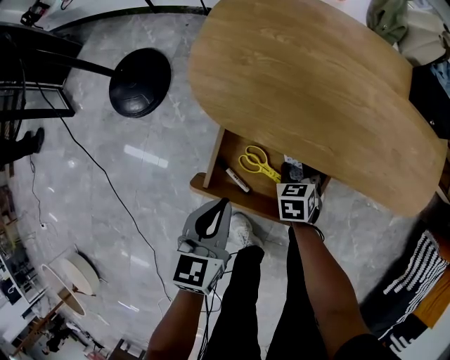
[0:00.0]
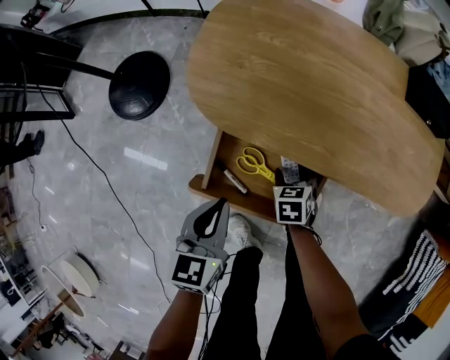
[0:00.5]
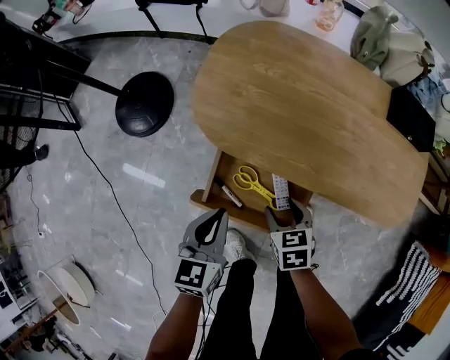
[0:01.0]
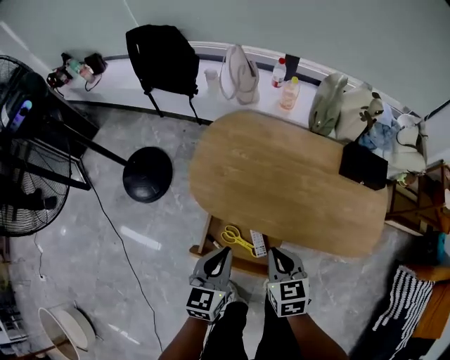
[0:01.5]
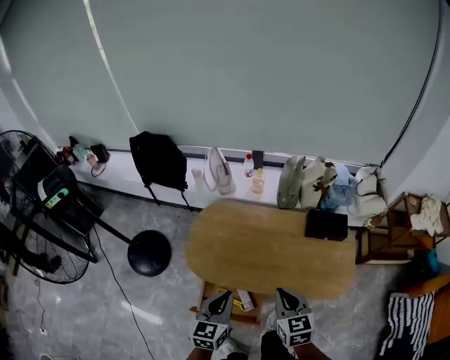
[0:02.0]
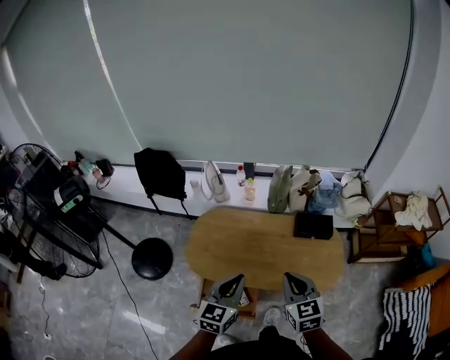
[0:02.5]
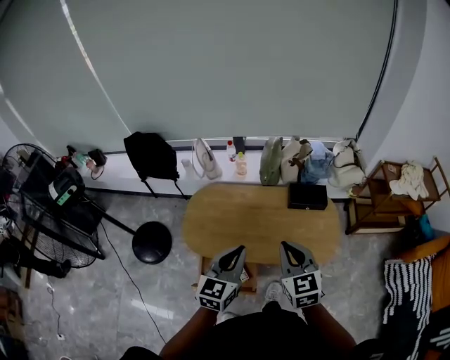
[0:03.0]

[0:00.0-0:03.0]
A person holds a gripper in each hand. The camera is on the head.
0:00.0 to 0:01.5: The left gripper shifts approximately 20 cm upward, while the right gripper goes about 35 cm upward, swivels some 20 degrees, and closes its fingers.
0:01.5 to 0:03.0: Both grippers travel together upward and to the right, approximately 35 cm. The right gripper turns by some 30 degrees, while the left gripper swivels about 20 degrees.

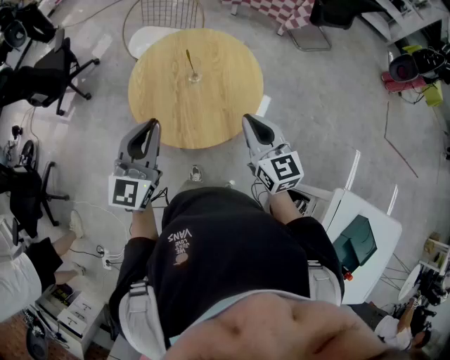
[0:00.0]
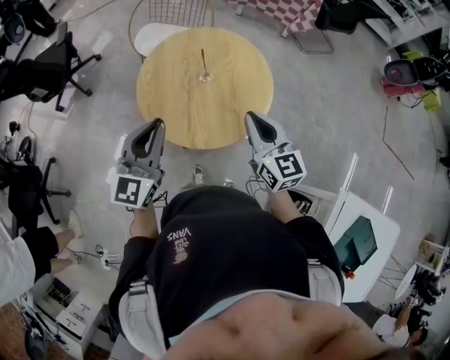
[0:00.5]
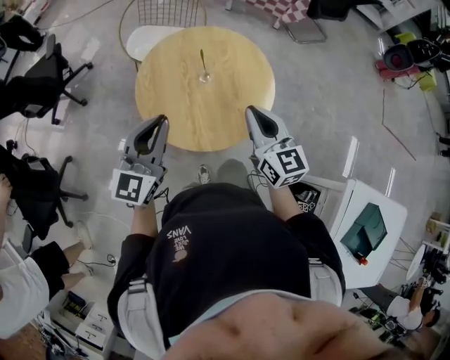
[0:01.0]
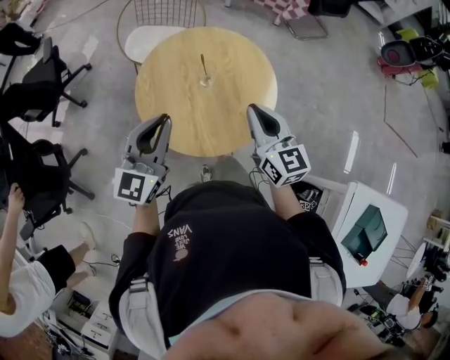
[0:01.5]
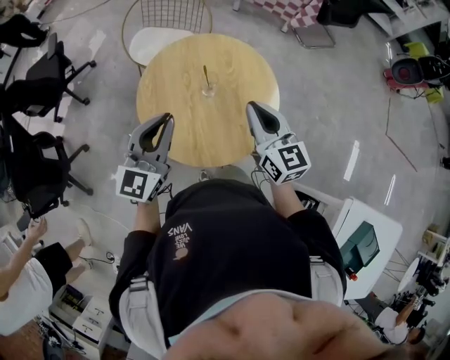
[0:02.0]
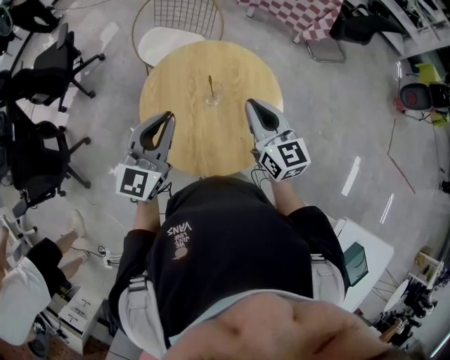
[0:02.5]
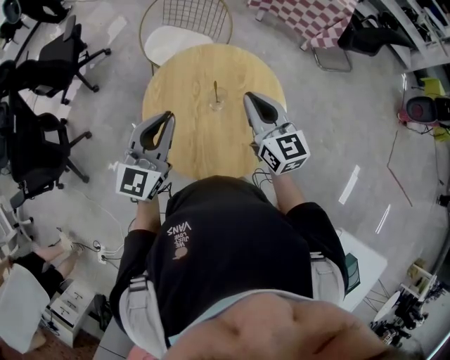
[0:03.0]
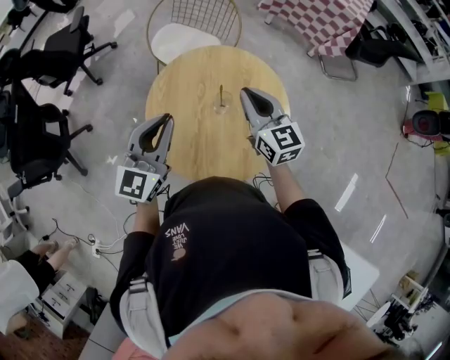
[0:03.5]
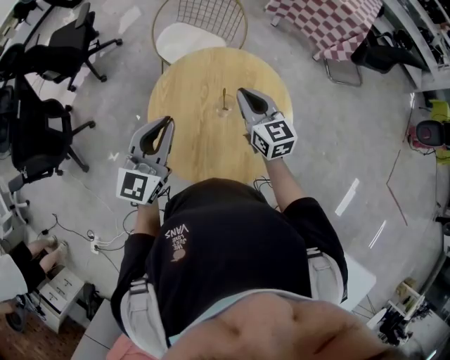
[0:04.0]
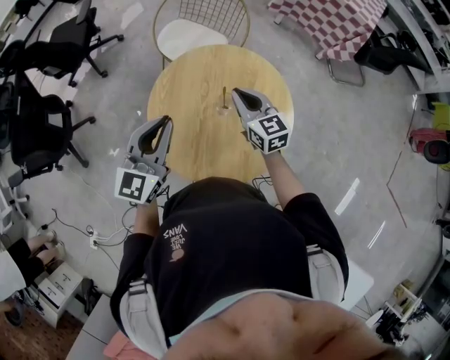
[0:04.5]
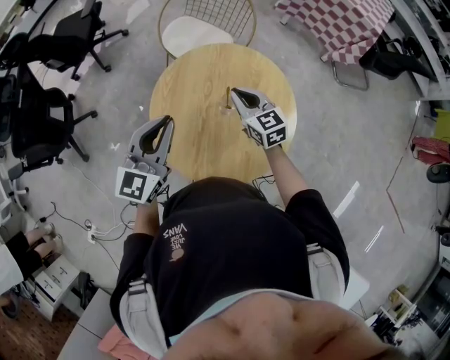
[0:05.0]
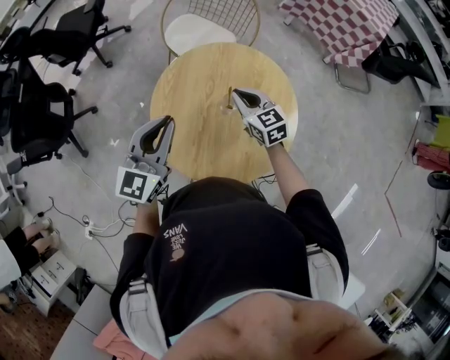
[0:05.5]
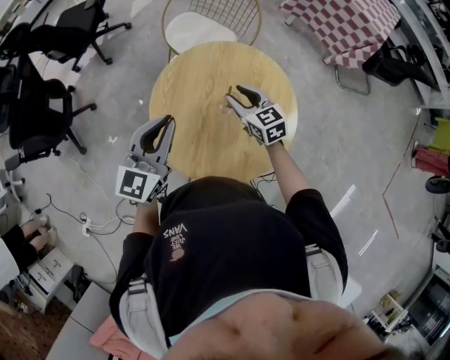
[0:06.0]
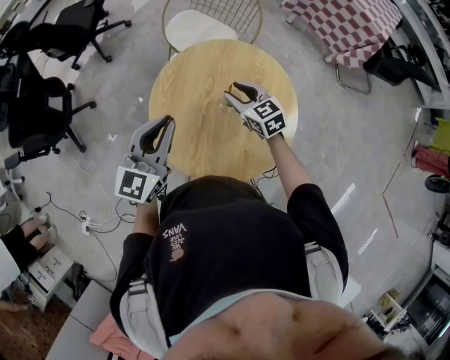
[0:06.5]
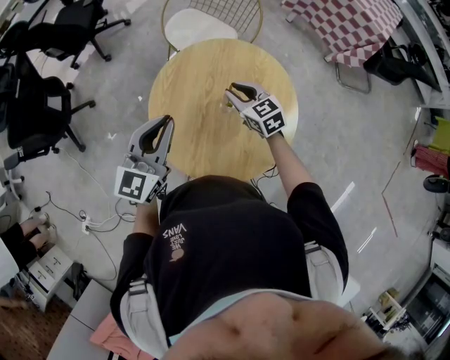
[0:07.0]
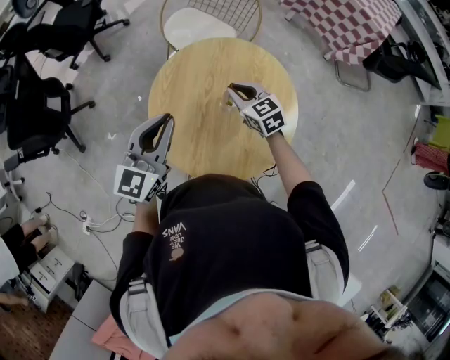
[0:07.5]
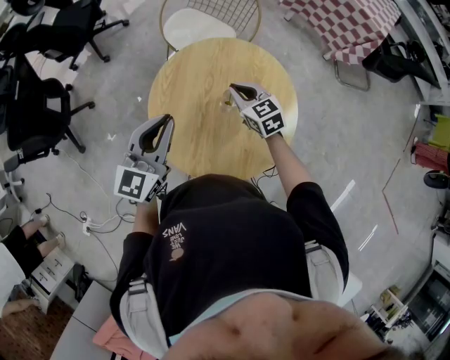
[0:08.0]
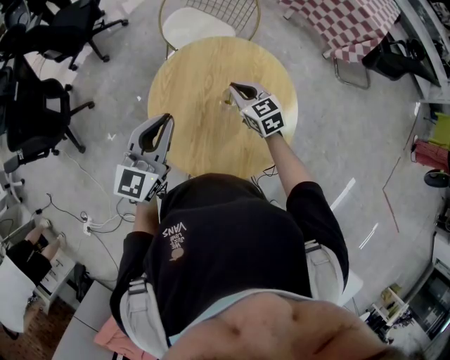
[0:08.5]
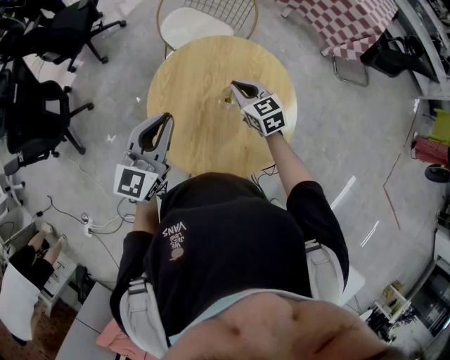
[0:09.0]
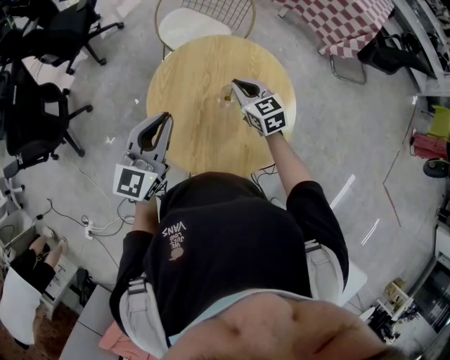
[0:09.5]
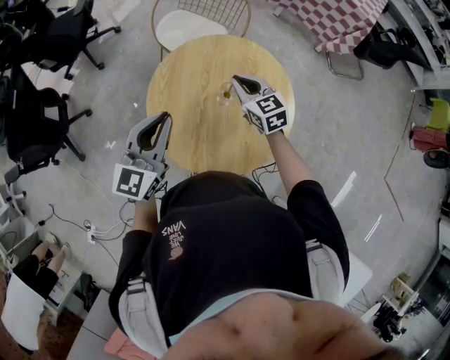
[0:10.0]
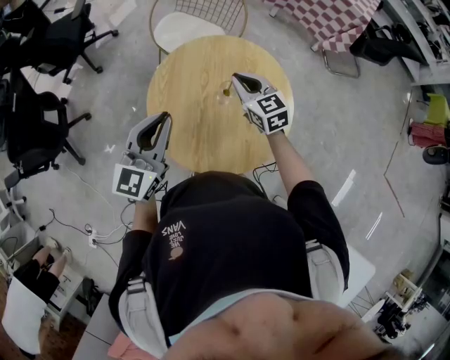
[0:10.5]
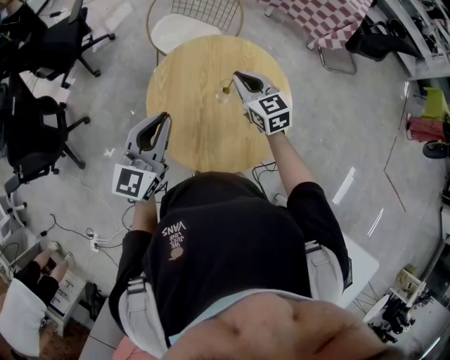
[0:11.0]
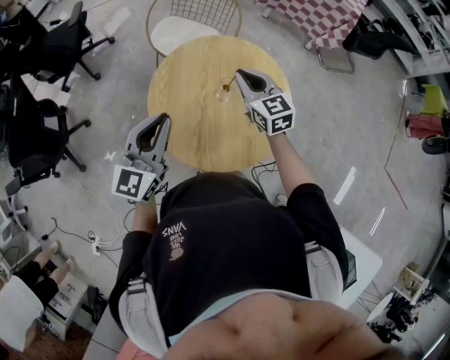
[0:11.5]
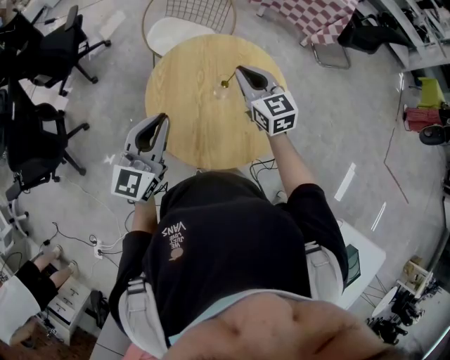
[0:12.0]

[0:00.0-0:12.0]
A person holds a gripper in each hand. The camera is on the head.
0:00.0 to 0:02.0: The two grippers go approximately 15 cm forward and to the left.
0:02.0 to 0:04.0: The left gripper heads forward, covering roughly 5 cm; the right gripper heads forward, covering some 15 cm.
0:04.0 to 0:06.0: The right gripper is displaced downward by roughly 10 cm, rotates roughly 20 degrees, and opens its fingers.
0:06.0 to 0:08.0: The right gripper closes.
0:08.0 to 0:10.0: The grippers make only small movements.
0:10.0 to 0:12.0: The right gripper goes about 10 cm upward and backward, while the left gripper moves approximately 5 cm.

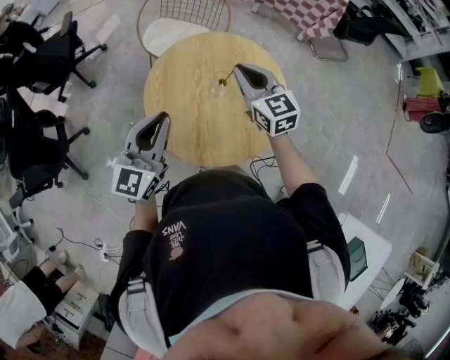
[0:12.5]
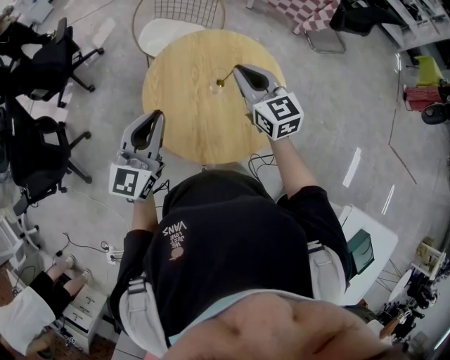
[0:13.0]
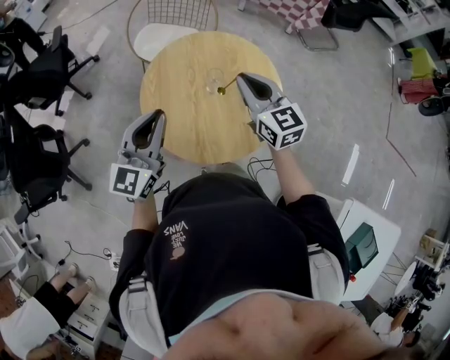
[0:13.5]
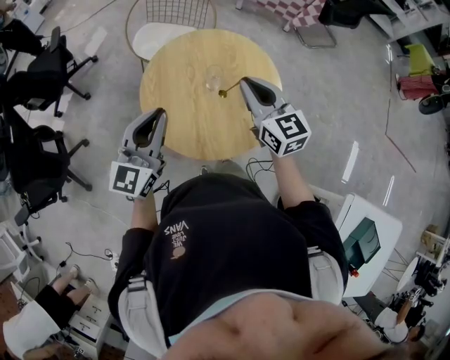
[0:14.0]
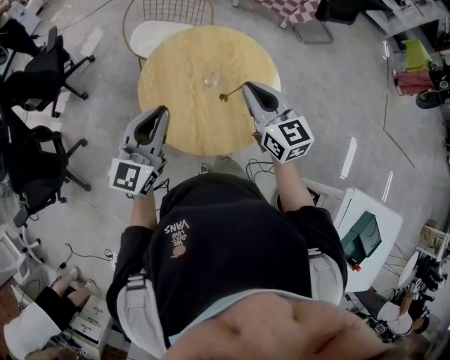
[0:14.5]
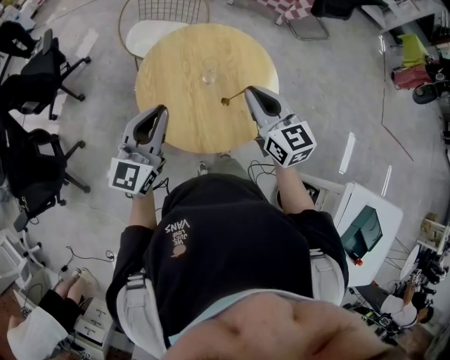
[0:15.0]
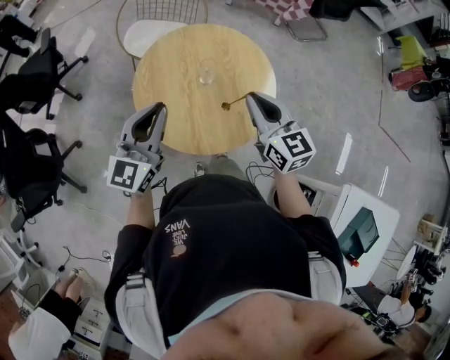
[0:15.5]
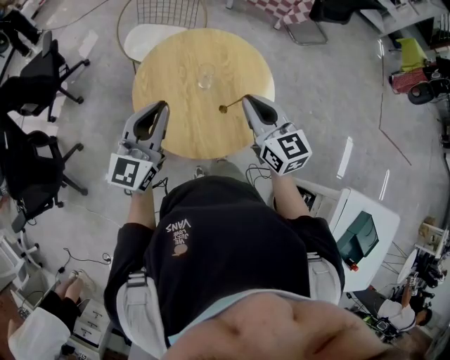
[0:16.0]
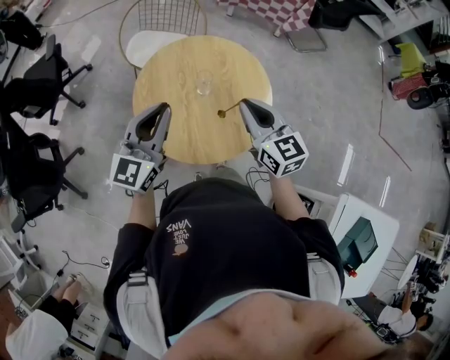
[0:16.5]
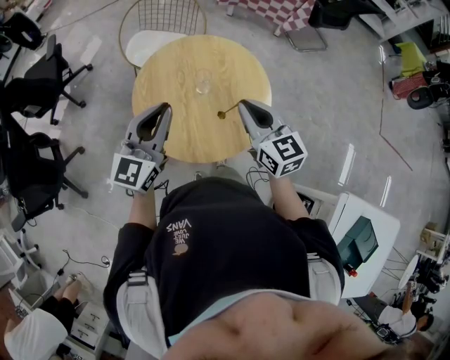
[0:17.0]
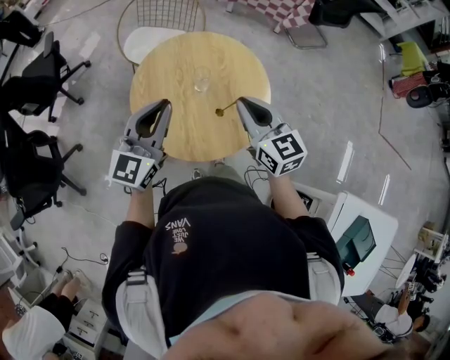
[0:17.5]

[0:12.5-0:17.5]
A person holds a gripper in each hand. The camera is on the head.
0:12.5 to 0:15.0: The right gripper travels backward by about 15 cm.
0:15.0 to 0:17.5: The left gripper ends up about 5 cm from where it was.

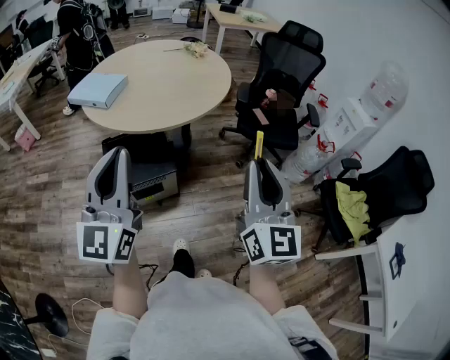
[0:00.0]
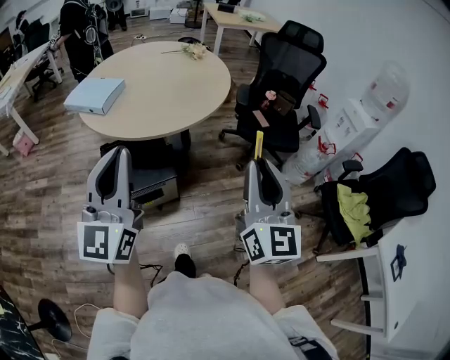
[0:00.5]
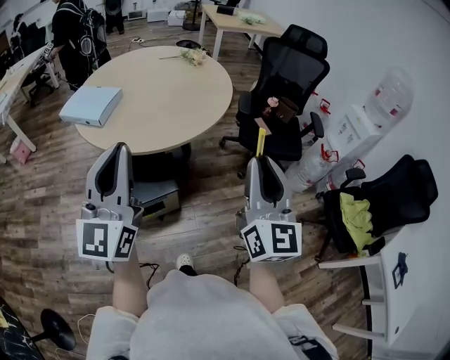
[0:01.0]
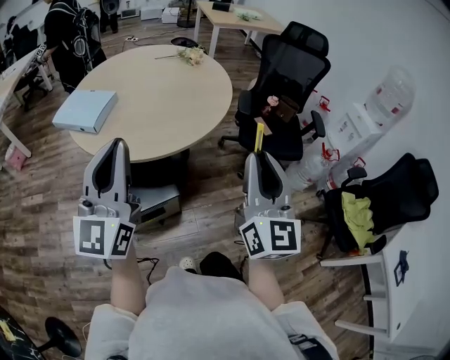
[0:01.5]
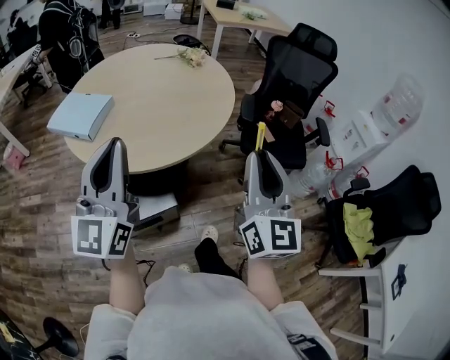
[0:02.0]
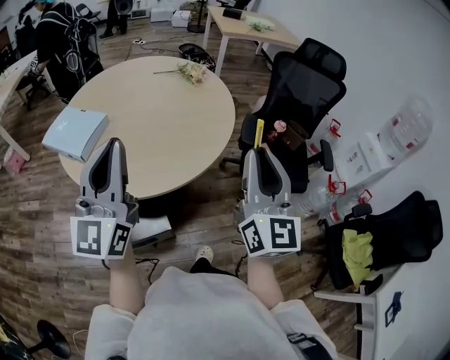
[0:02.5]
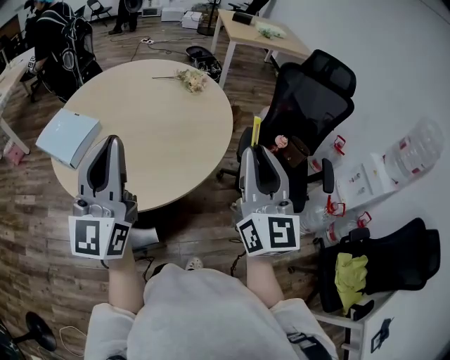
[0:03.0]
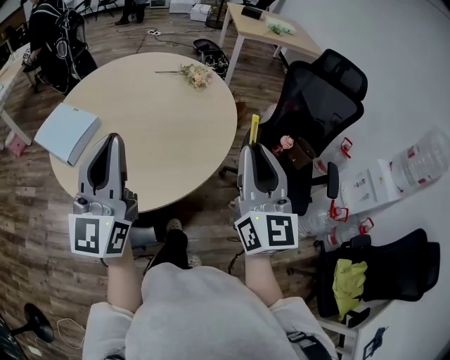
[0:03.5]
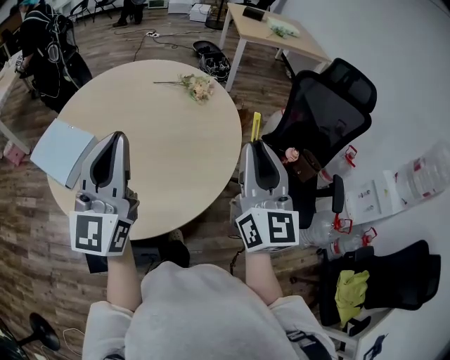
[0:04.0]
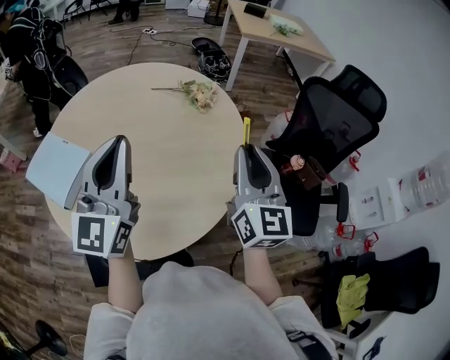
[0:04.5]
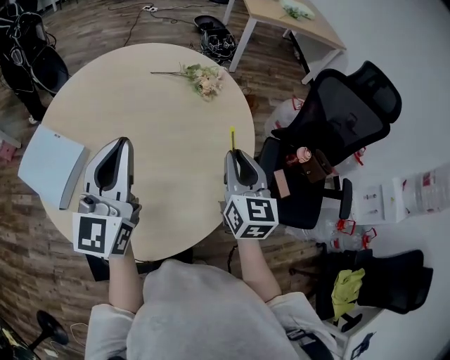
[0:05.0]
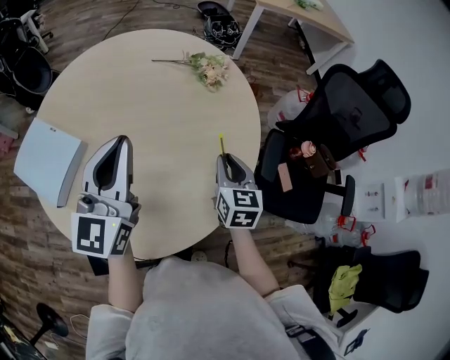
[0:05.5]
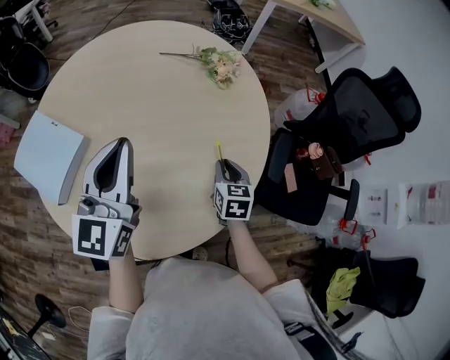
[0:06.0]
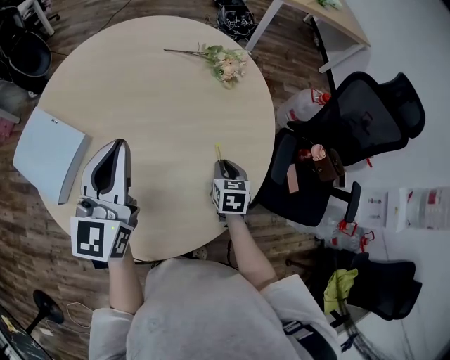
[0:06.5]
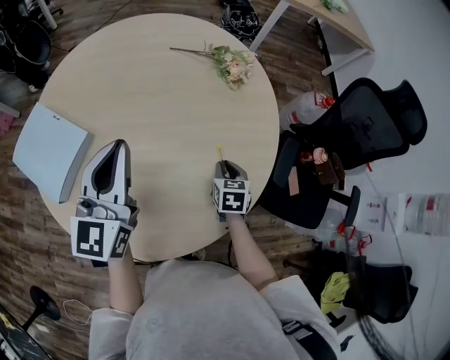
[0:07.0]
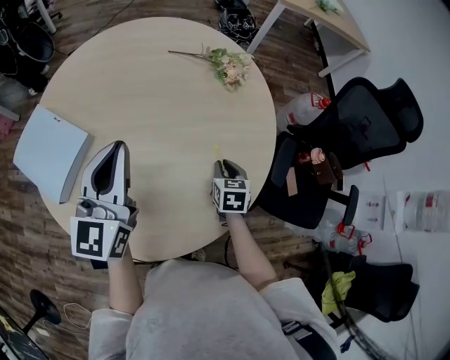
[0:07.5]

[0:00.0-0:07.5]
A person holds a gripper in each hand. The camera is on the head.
0:00.0 to 0:02.0: Both grippers travel together forward, some 25 cm.
0:02.0 to 0:04.0: Both grippers travel together forward, approximately 35 cm.
0:04.0 to 0:05.5: The left gripper travels forward and downward by roughly 20 cm; the right gripper heads downward and forward, covering roughly 30 cm, and tilts its fingers some 40 degrees downward.
0:05.5 to 0:07.5: The left gripper heads to the left, covering roughly 5 cm. The right gripper travels downward by roughly 15 cm, and rotates about 20 degrees.
